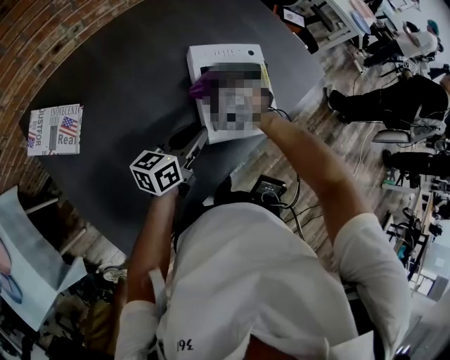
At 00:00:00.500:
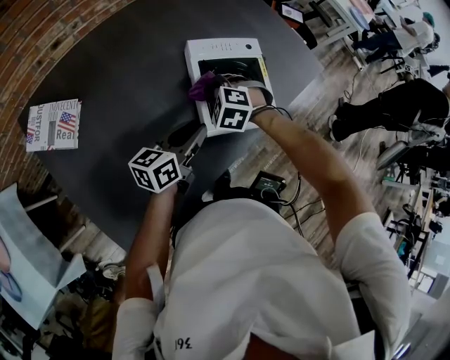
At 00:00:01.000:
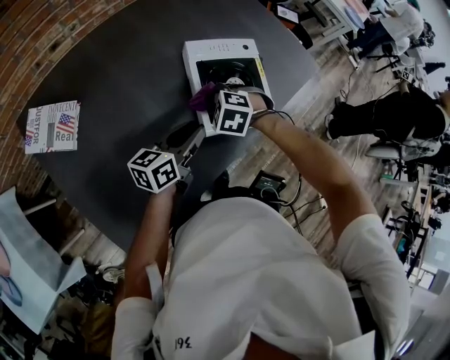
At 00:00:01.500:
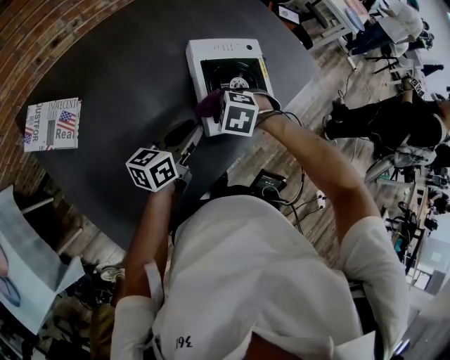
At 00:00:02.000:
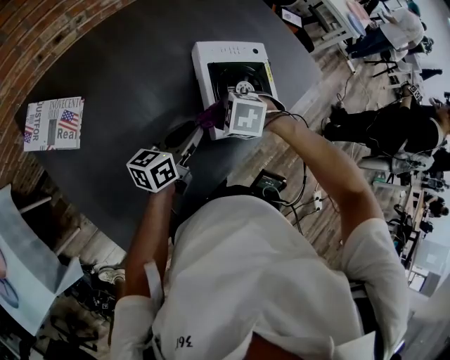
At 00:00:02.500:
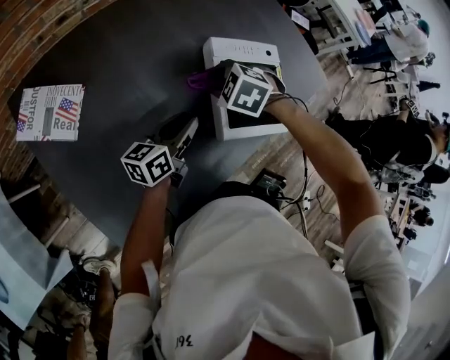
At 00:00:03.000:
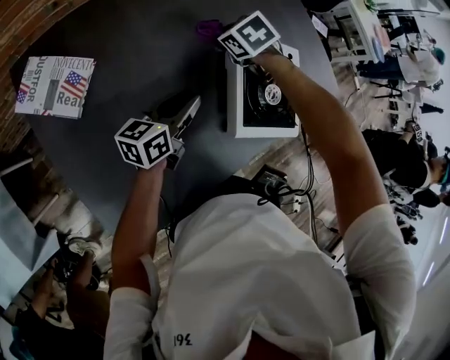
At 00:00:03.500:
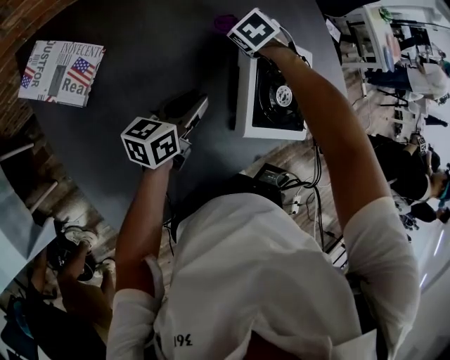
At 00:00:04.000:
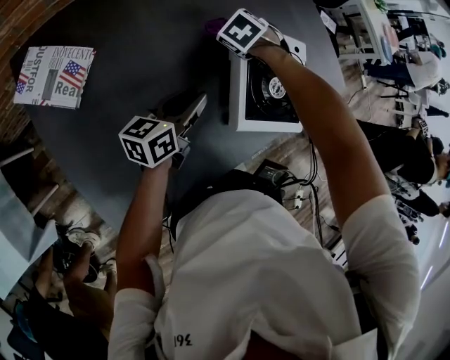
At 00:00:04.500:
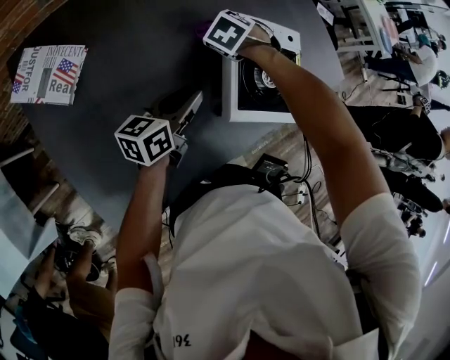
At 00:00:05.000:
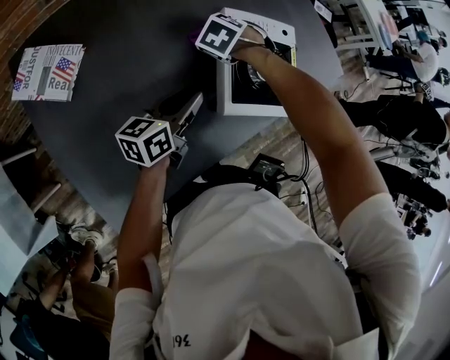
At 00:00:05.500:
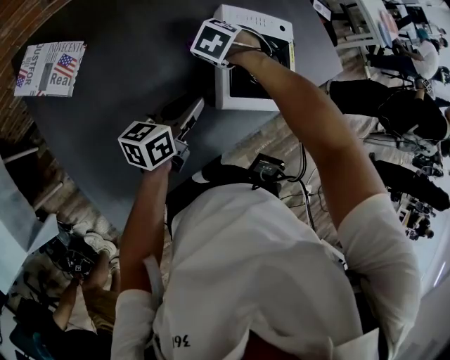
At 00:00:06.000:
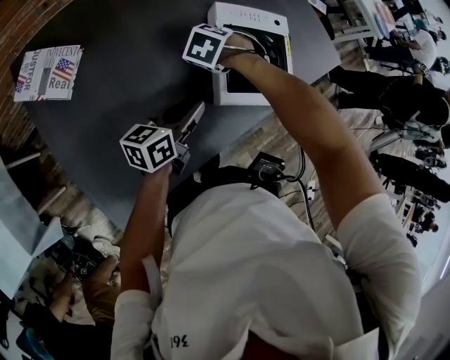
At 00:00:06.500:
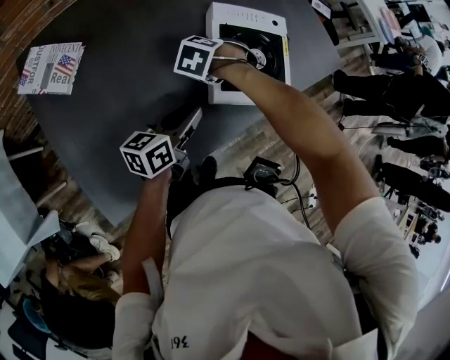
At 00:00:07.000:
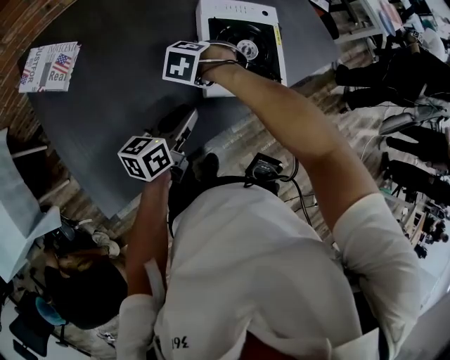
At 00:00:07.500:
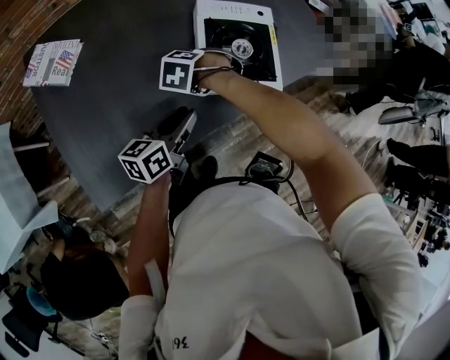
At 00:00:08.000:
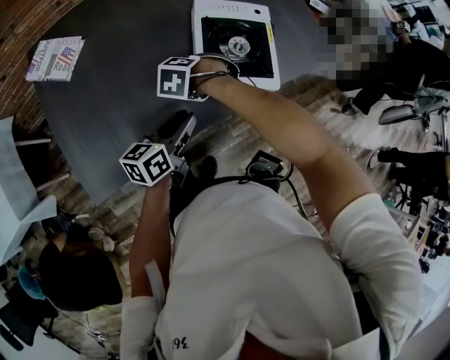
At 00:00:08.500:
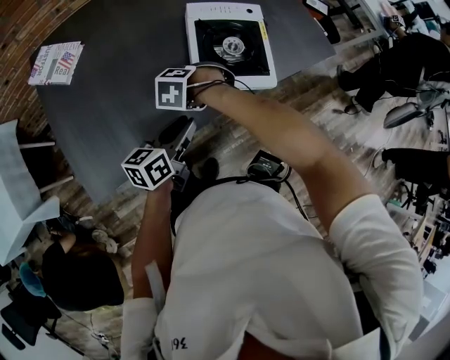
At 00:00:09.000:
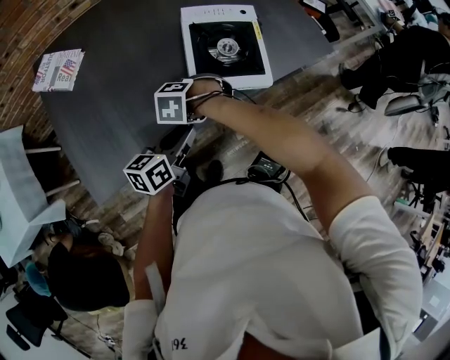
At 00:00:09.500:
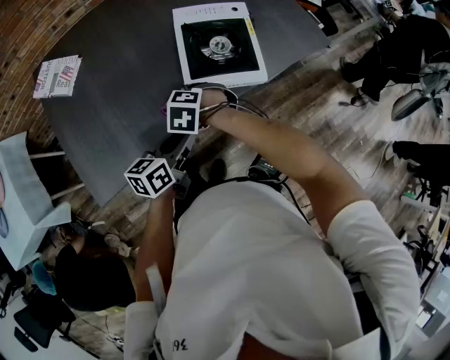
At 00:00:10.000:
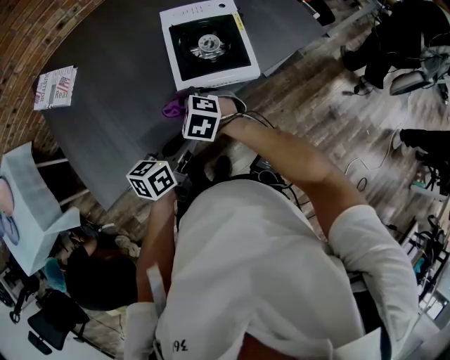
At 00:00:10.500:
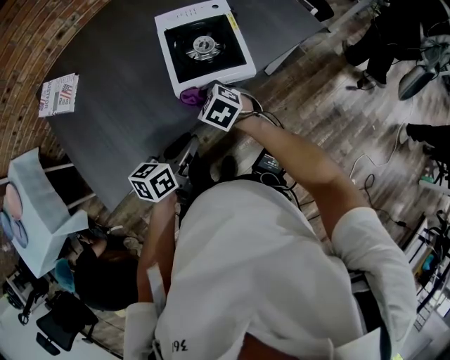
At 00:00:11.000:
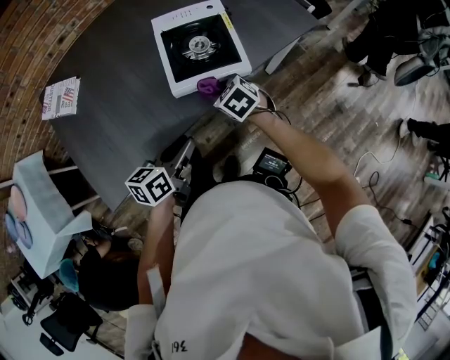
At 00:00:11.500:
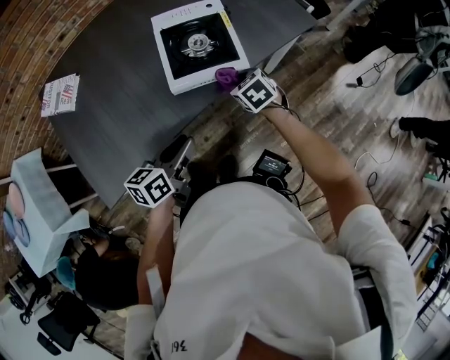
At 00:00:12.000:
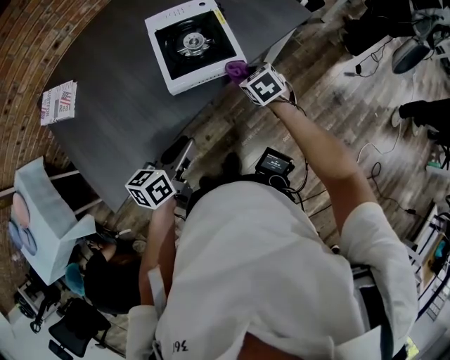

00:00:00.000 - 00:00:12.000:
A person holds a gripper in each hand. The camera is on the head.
00:00:00.000 - 00:00:02.000: The right gripper moves roughly 10 cm, and swivels some 30 degrees.
00:00:02.000 - 00:00:04.000: The right gripper changes place by some 25 cm, and turns by some 20 degrees; the left gripper changes place by roughly 10 cm.
00:00:04.000 - 00:00:06.000: The left gripper changes place by approximately 10 cm. Meanwhile the right gripper shifts by some 10 cm.
00:00:06.000 - 00:00:08.000: The right gripper moves roughly 15 cm, while the left gripper ends up approximately 10 cm from where it was.
00:00:08.000 - 00:00:10.000: The left gripper moves approximately 10 cm. Meanwhile the right gripper shifts by approximately 10 cm, and turns by about 30 degrees.
00:00:10.000 - 00:00:12.000: The right gripper is displaced to the right by approximately 25 cm, and changes its angle by about 40 degrees.

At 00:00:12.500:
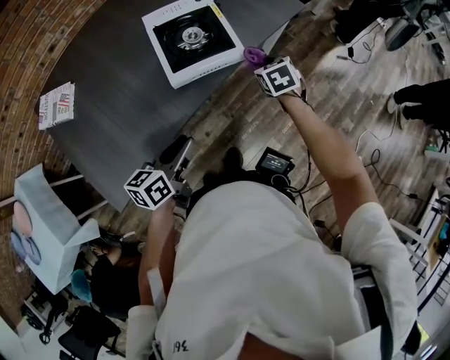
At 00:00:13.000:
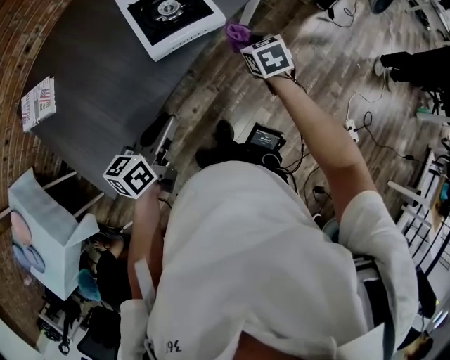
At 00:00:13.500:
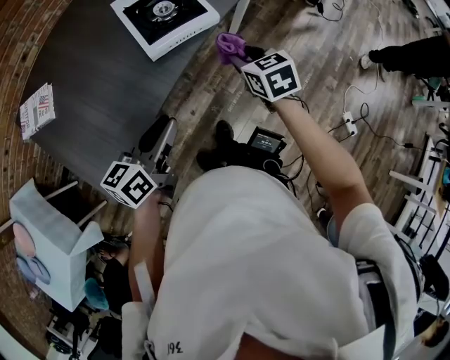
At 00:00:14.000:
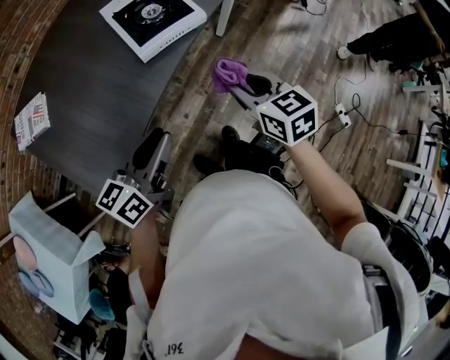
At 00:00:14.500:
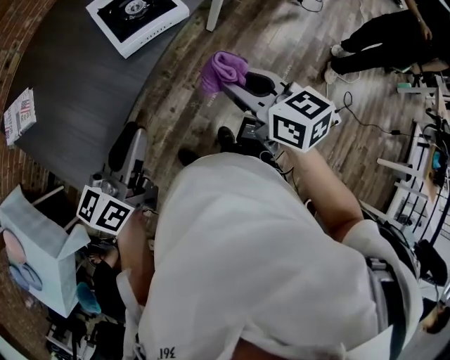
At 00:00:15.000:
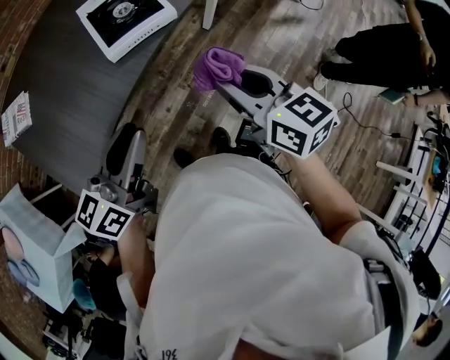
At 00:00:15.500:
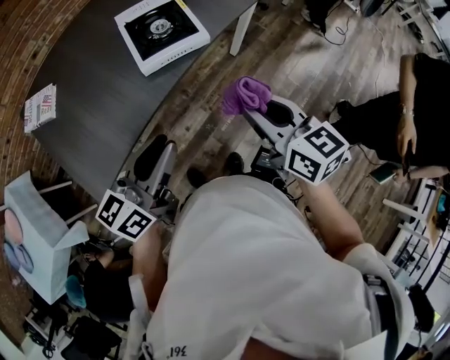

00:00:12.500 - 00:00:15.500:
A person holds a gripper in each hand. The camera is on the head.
00:00:12.500 - 00:00:14.000: The right gripper goes approximately 30 cm backward and upward, and turns by roughly 30 degrees, while the left gripper moves backward and upward, approximately 15 cm.
00:00:14.000 - 00:00:15.500: The right gripper moves upward and to the right, some 10 cm. Meanwhile the left gripper is displaced to the right and upward by some 10 cm.

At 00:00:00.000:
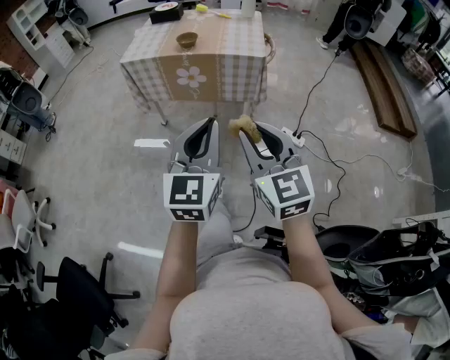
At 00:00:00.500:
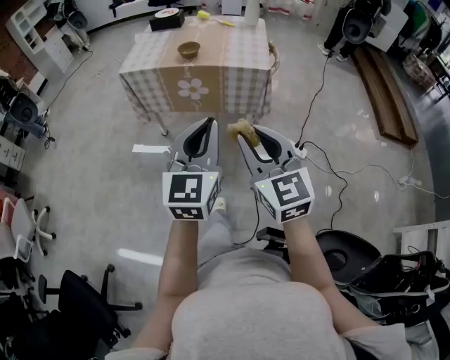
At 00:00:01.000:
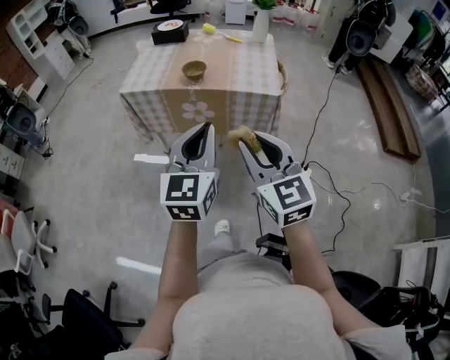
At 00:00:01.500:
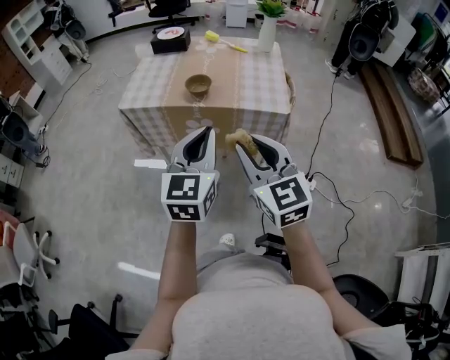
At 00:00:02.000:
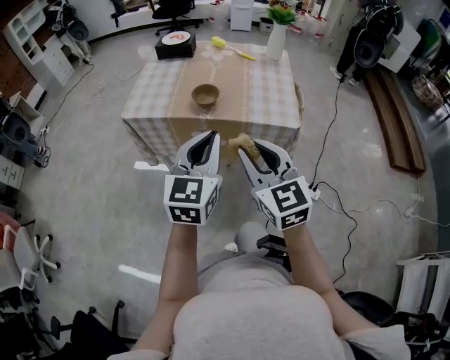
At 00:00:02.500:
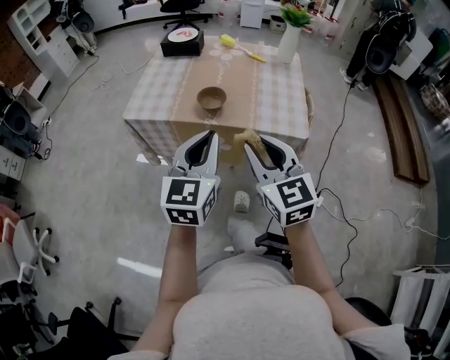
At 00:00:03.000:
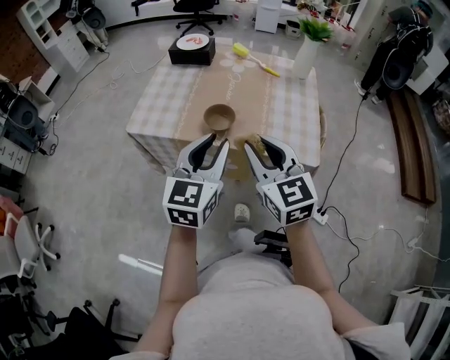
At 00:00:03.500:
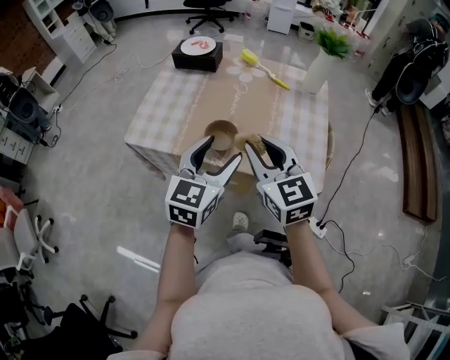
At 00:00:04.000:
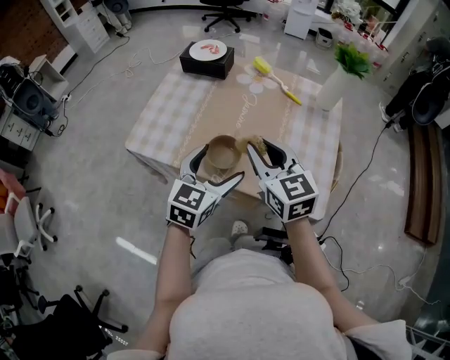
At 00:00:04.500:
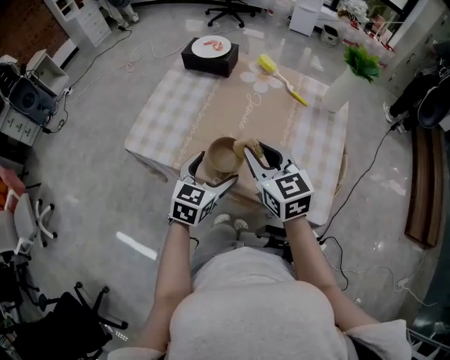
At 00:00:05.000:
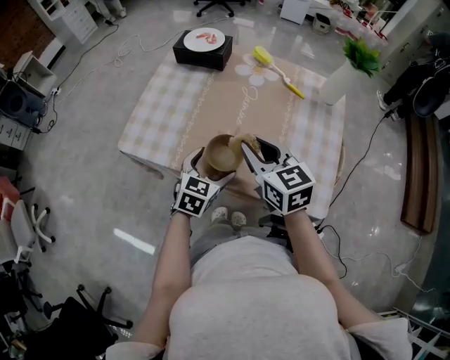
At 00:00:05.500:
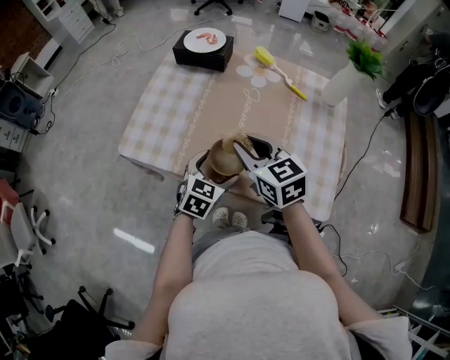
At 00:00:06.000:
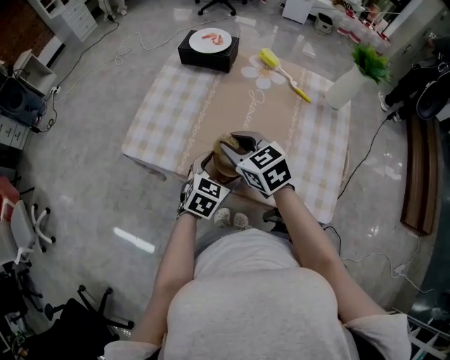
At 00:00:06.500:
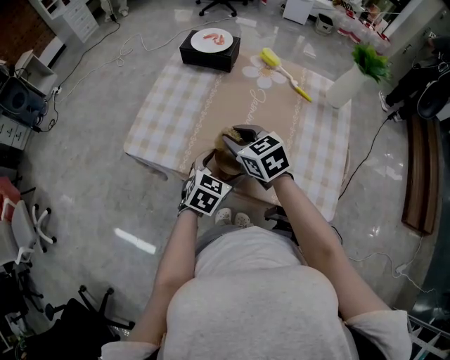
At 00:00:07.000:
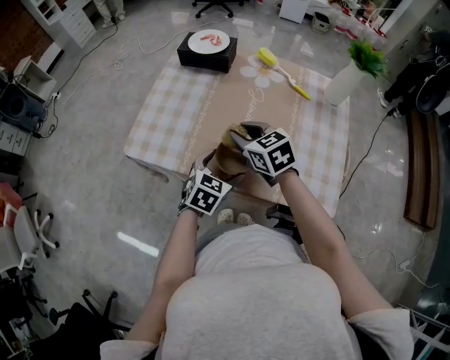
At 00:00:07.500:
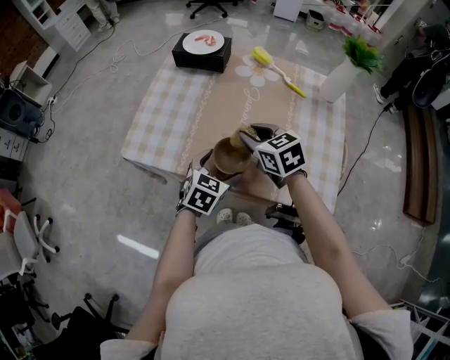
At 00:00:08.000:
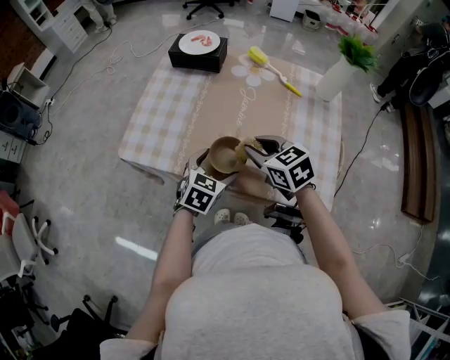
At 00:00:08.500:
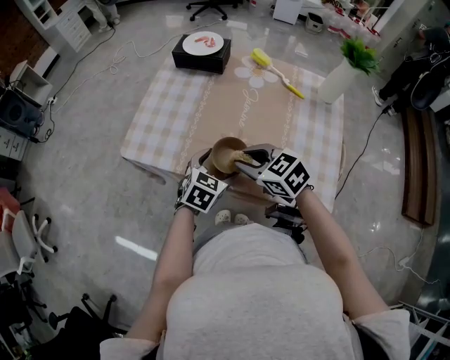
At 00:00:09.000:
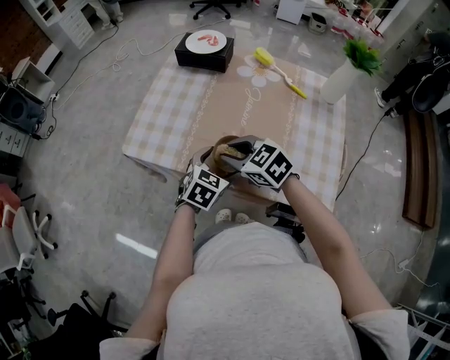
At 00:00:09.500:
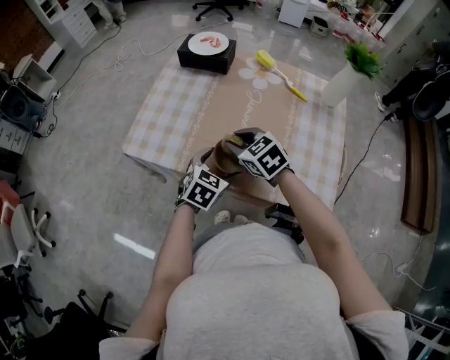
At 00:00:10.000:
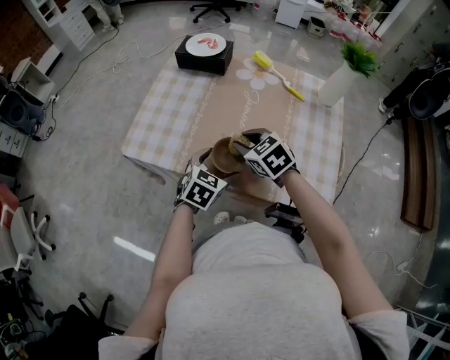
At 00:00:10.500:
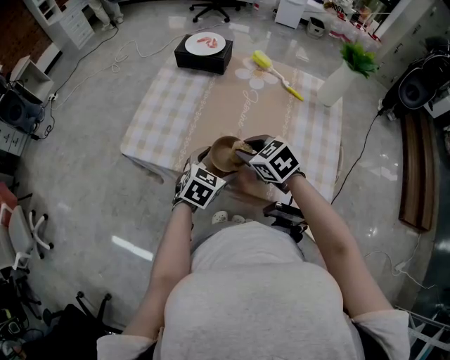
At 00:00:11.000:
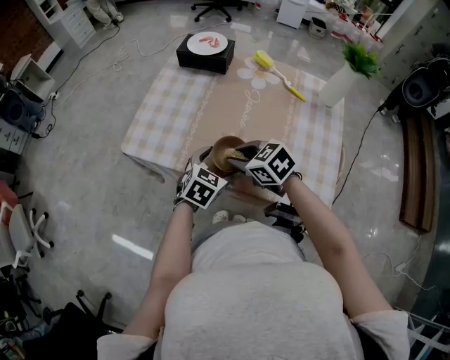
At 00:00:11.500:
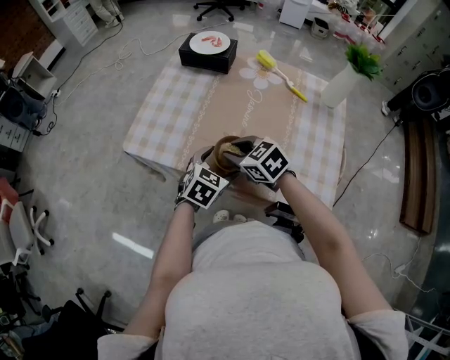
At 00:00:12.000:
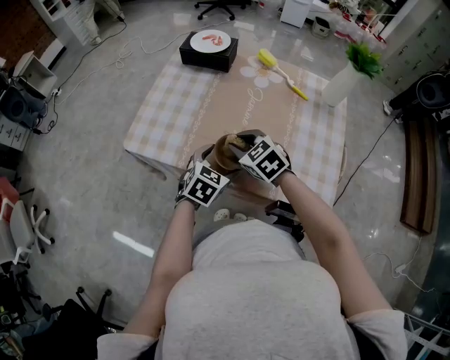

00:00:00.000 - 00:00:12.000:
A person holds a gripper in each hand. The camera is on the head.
00:00:00.000 - 00:00:02.000: The grippers both shift forward by about 35 cm.
00:00:02.000 - 00:00:04.000: Both grippers travel together forward, about 30 cm. The left gripper opens.
00:00:04.000 - 00:00:06.000: The left gripper heads downward, covering roughly 15 cm. Meanwhile the right gripper heads to the left, downward and forward, covering approximately 15 cm, and rotates some 20 degrees.
00:00:06.000 - 00:00:08.000: The right gripper shifts approximately 10 cm to the right.
00:00:10.000 - 00:00:12.000: The grippers stay close to where they were, moving slightly.
